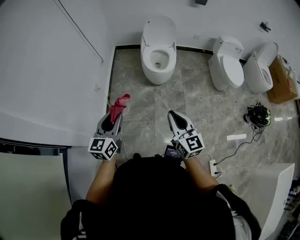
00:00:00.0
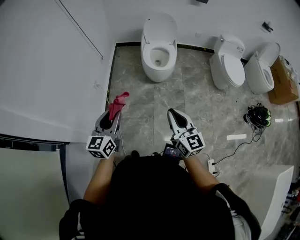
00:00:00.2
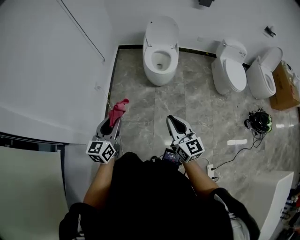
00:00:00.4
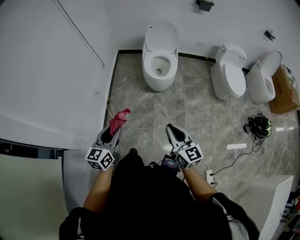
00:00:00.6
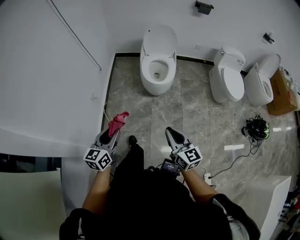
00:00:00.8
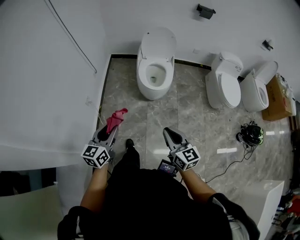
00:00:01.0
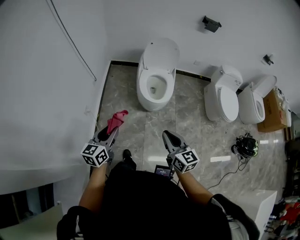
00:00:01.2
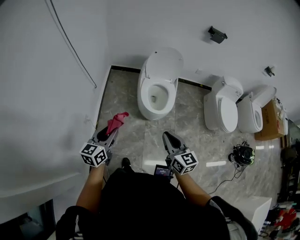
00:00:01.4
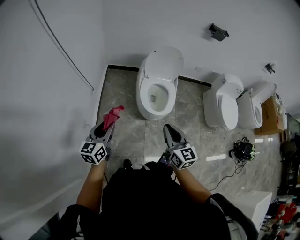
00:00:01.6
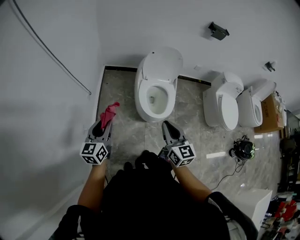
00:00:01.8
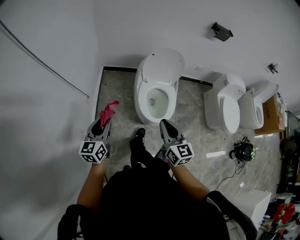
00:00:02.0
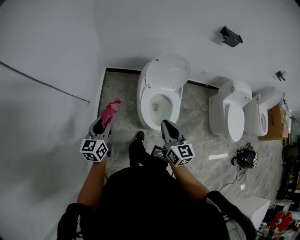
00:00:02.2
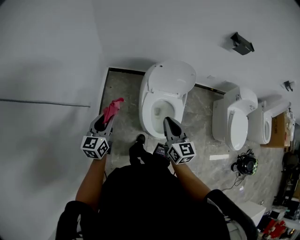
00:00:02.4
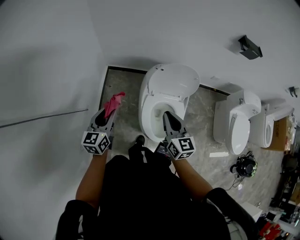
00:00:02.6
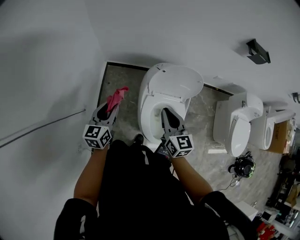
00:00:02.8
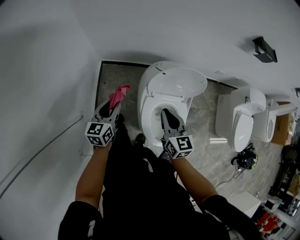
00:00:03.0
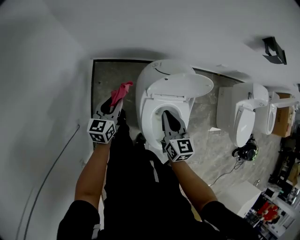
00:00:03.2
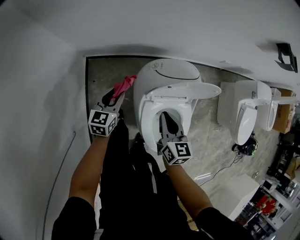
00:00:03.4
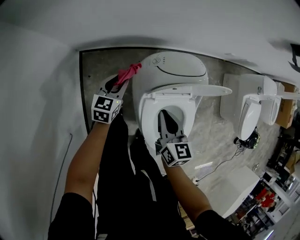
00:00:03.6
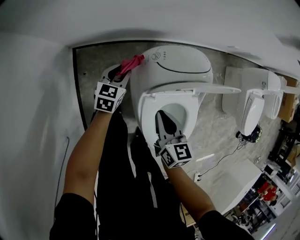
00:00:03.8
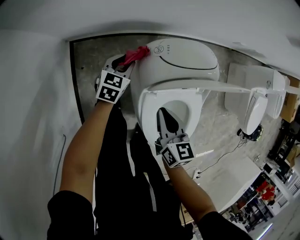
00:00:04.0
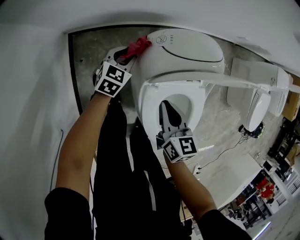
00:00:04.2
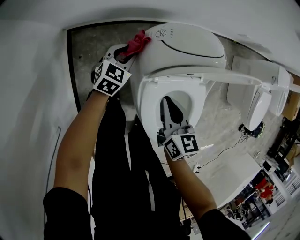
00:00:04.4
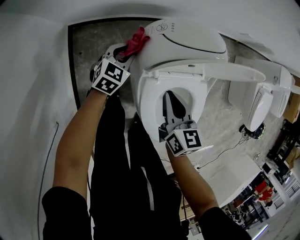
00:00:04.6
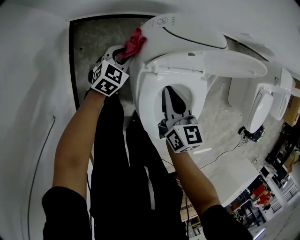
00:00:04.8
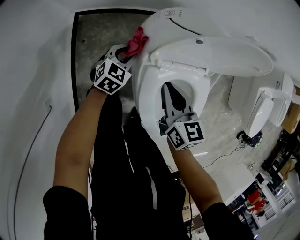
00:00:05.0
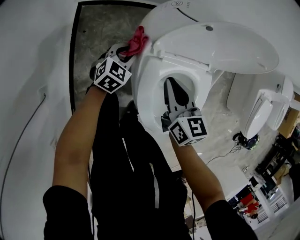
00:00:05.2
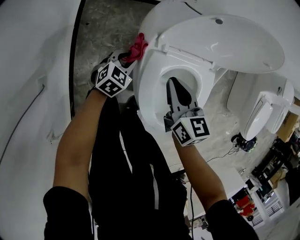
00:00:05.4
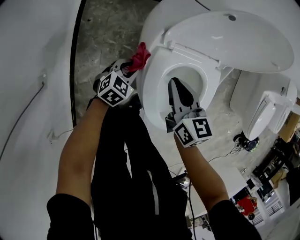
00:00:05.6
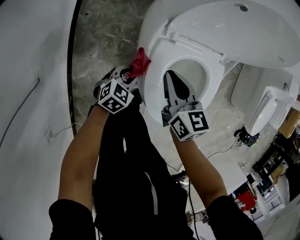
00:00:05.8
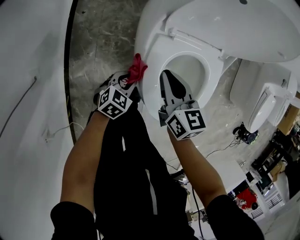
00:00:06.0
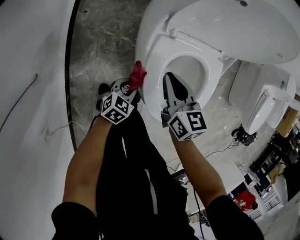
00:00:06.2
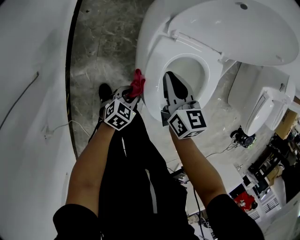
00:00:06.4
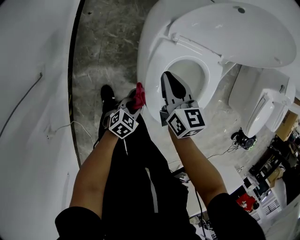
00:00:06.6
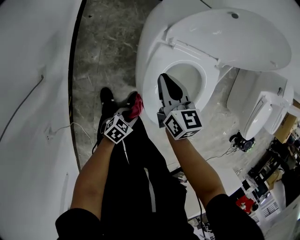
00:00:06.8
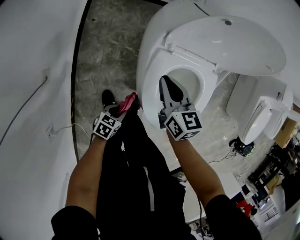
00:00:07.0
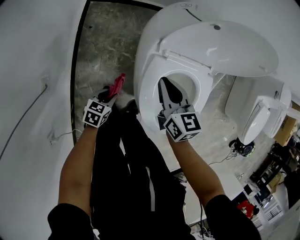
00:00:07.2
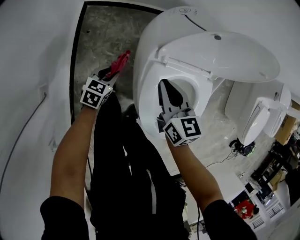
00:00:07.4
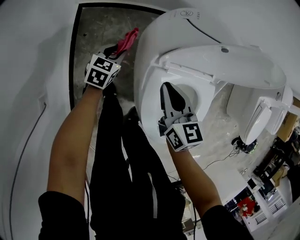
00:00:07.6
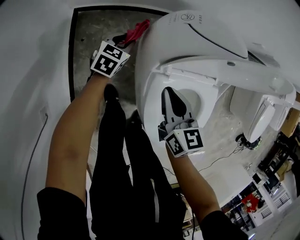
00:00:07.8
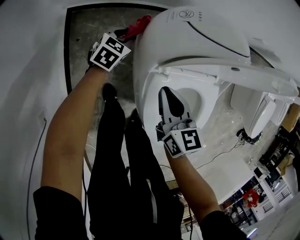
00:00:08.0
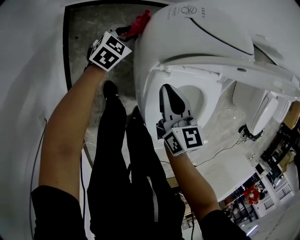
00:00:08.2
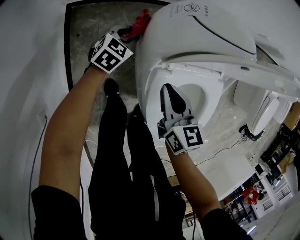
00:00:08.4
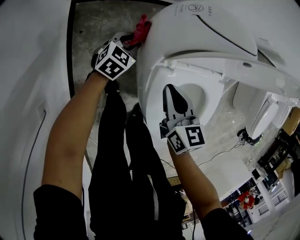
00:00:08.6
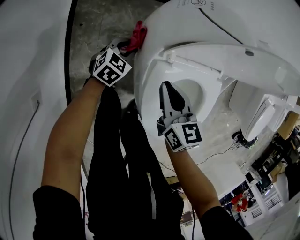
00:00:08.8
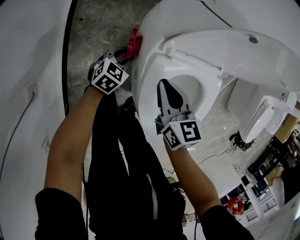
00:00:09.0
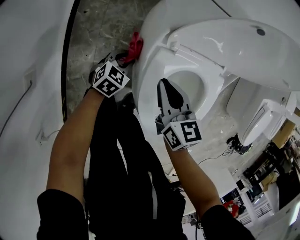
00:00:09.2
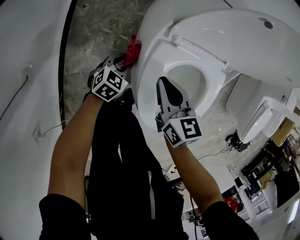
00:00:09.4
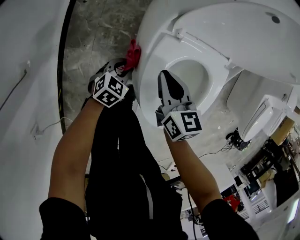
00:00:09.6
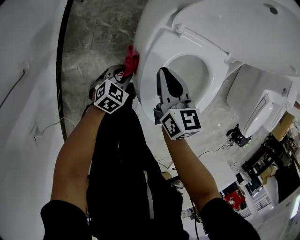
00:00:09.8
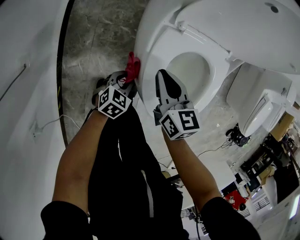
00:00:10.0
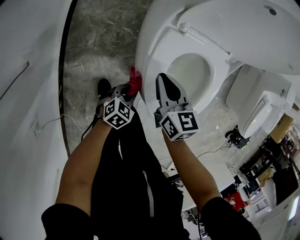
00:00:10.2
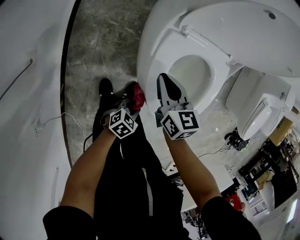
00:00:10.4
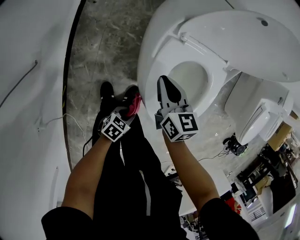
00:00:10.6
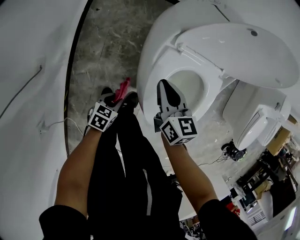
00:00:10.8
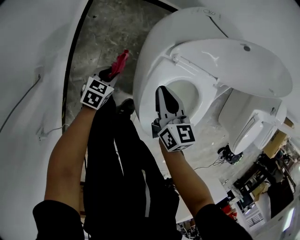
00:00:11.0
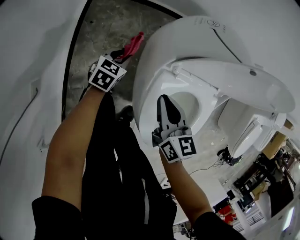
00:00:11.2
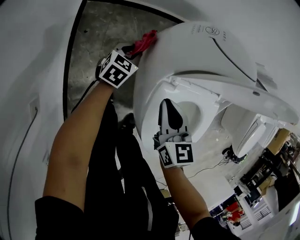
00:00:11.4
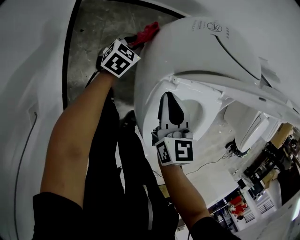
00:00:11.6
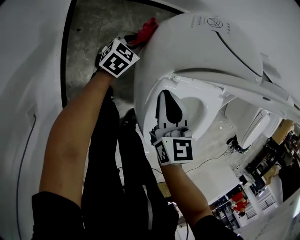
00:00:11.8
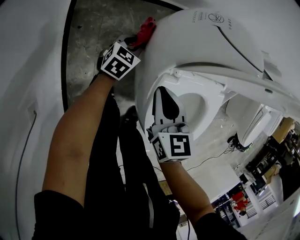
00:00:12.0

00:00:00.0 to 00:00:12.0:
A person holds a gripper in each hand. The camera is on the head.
00:00:00.0 to 00:00:01.6: The grippers both shift forward by about 35 cm.
00:00:01.6 to 00:00:03.0: The pair of grippers is taken forward, approximately 50 cm.
00:00:03.0 to 00:00:04.4: The left gripper travels downward and forward by about 40 cm, and changes its angle by about 40 degrees. Meanwhile the right gripper moves downward, roughly 25 cm, and changes its angle by roughly 30 degrees.
00:00:04.4 to 00:00:06.0: The left gripper moves backward, about 30 cm. Meanwhile the right gripper goes about 15 cm backward and downward.
00:00:06.0 to 00:00:07.6: The left gripper heads forward and to the left, covering about 25 cm. Meanwhile the right gripper travels forward by roughly 10 cm.
00:00:07.6 to 00:00:09.0: The left gripper shifts roughly 10 cm to the right, backward and downward. The right gripper shifts by about 5 cm.
00:00:09.0 to 00:00:10.4: The right gripper moves backward, some 10 cm; the left gripper moves backward and to the right, some 35 cm, and changes its angle by roughly 20 degrees.
00:00:10.4 to 00:00:12.0: The right gripper is displaced forward and to the left by about 15 cm. The left gripper shifts approximately 50 cm forward and to the left, and turns by about 20 degrees.

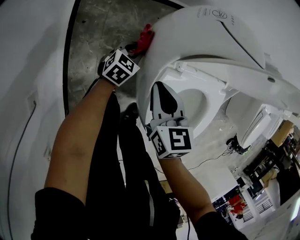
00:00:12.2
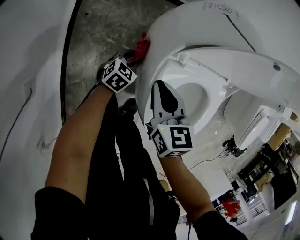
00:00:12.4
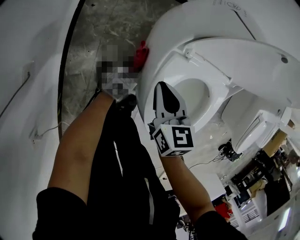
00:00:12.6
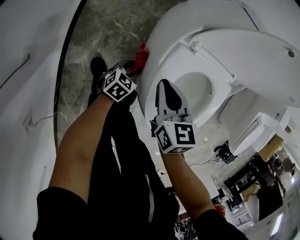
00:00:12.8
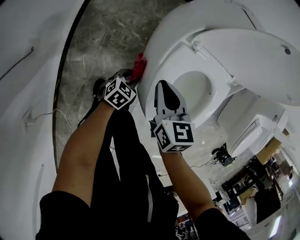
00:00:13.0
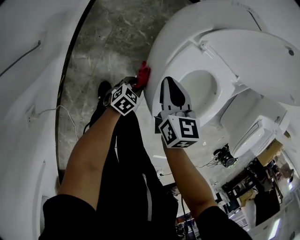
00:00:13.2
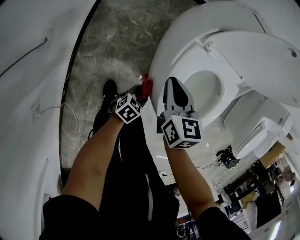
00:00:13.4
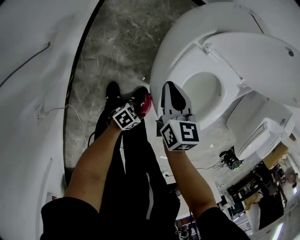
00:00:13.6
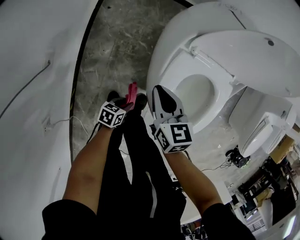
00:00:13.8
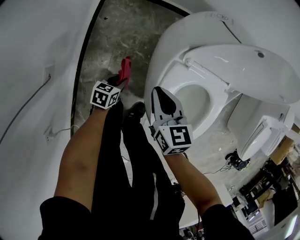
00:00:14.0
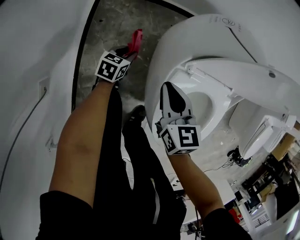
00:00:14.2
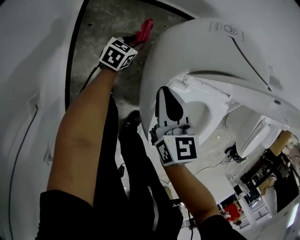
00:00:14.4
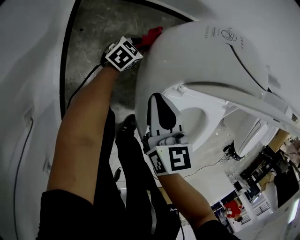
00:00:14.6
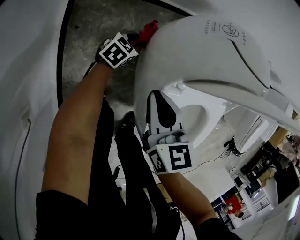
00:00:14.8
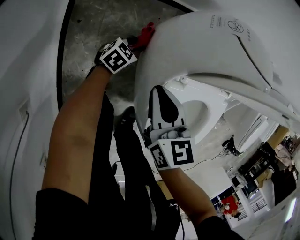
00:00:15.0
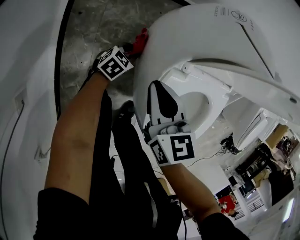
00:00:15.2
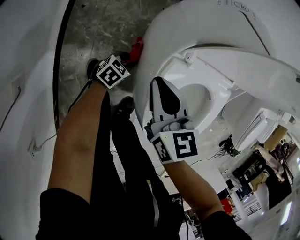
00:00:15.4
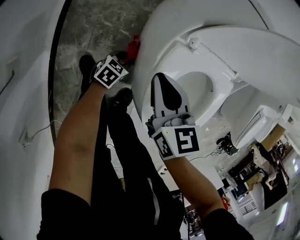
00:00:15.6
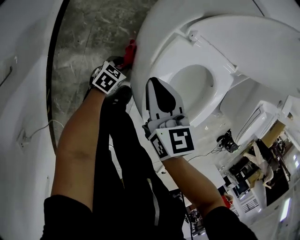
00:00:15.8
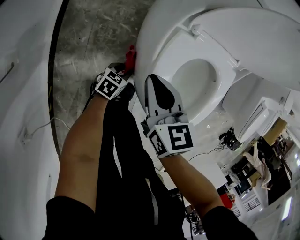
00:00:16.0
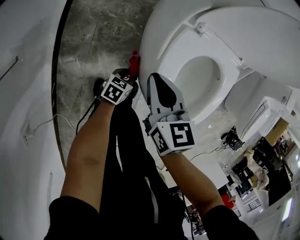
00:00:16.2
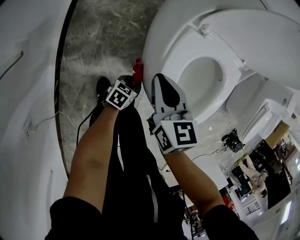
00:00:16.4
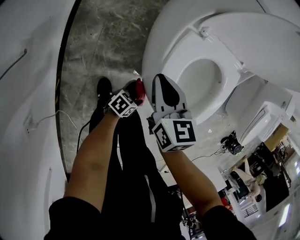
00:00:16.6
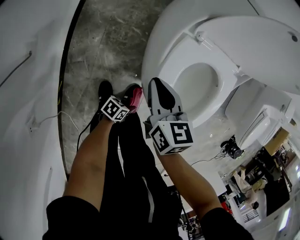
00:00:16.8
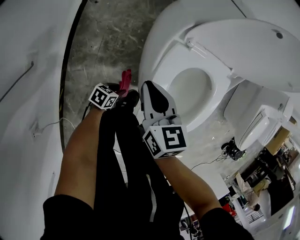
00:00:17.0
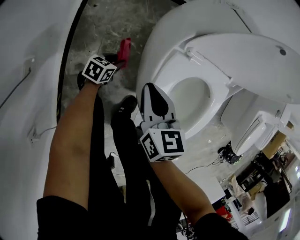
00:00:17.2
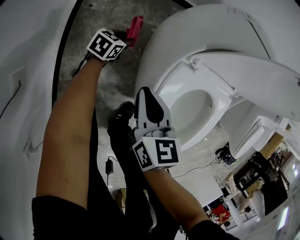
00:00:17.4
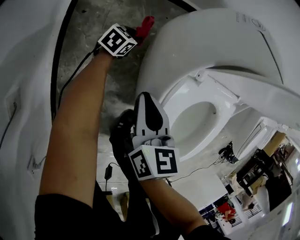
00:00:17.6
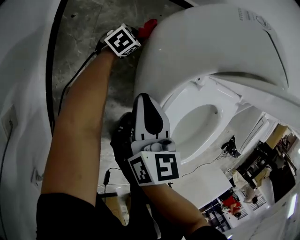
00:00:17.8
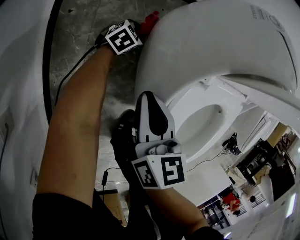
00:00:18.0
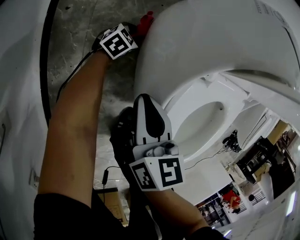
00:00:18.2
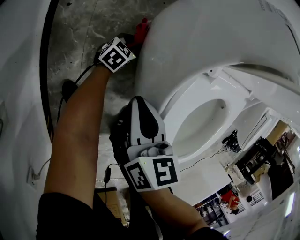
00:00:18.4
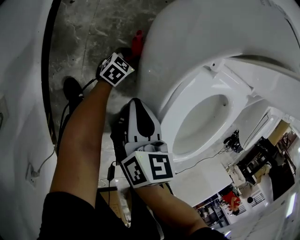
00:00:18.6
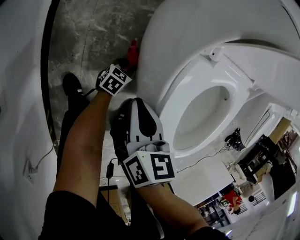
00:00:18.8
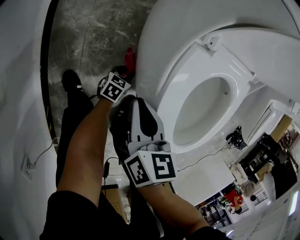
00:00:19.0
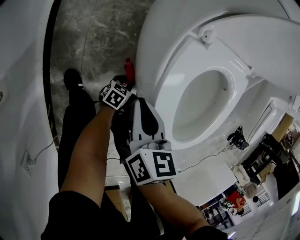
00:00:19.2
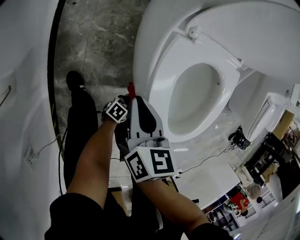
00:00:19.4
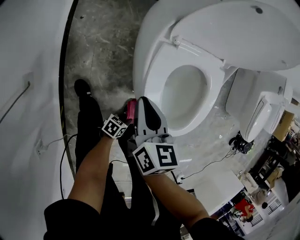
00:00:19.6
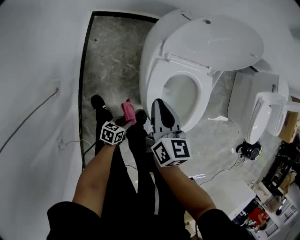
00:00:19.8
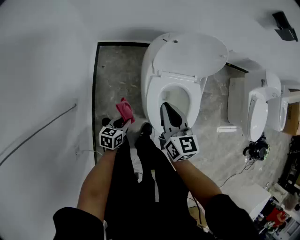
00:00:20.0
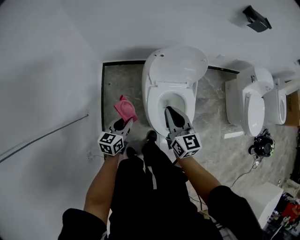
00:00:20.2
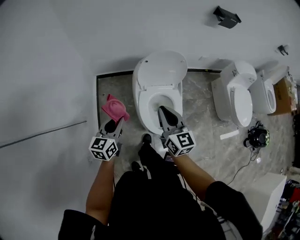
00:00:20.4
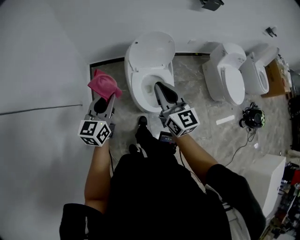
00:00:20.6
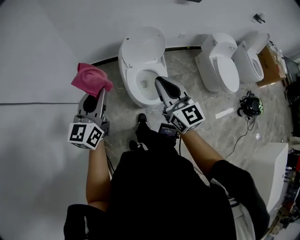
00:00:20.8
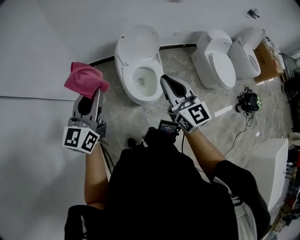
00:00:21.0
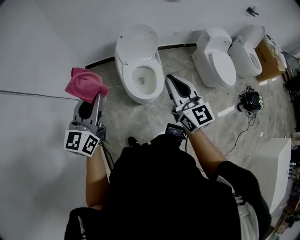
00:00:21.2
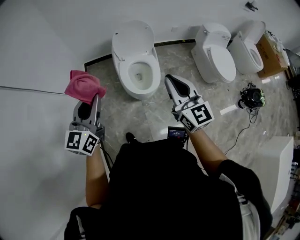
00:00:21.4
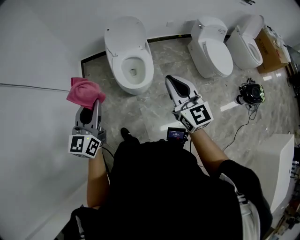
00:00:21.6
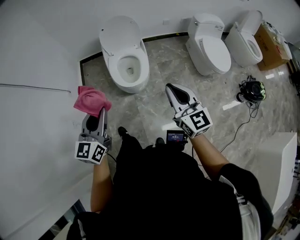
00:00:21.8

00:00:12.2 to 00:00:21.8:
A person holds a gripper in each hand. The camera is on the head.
00:00:12.2 to 00:00:13.8: The right gripper ends up some 10 cm from where it was, while the left gripper moves roughly 35 cm, and rotates around the line of its fingers by roughly 40 degrees, counterclockwise from behind.
00:00:13.8 to 00:00:15.4: The left gripper goes approximately 25 cm forward, and rotates some 40 degrees. Meanwhile the right gripper moves forward, roughly 10 cm.
00:00:15.4 to 00:00:17.0: The right gripper goes about 10 cm backward. The left gripper heads backward, covering approximately 20 cm, and rotates some 30 degrees.
00:00:17.0 to 00:00:18.6: The right gripper travels downward by roughly 10 cm, and turns by some 30 degrees, while the left gripper goes roughly 25 cm forward and downward, and rotates some 30 degrees.
00:00:18.6 to 00:00:20.2: Both grippers travel together upward, roughly 50 cm. The left gripper swivels about 30 degrees, while the right gripper tilts its fingers about 40 degrees upward.
00:00:20.2 to 00:00:21.8: The pair of grippers is taken backward and to the right, approximately 40 cm. The left gripper goes some 30 cm upward, and rotates some 30 degrees, while the right gripper goes some 20 cm upward.

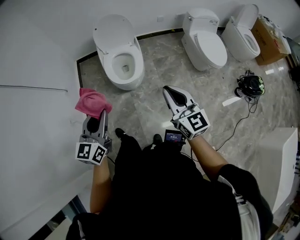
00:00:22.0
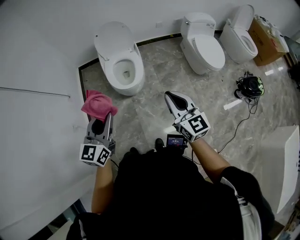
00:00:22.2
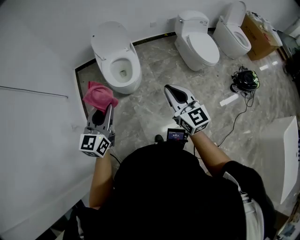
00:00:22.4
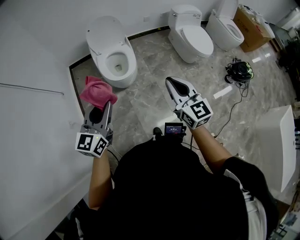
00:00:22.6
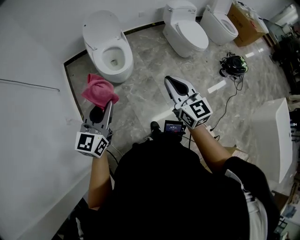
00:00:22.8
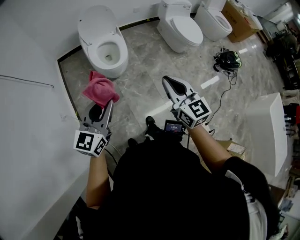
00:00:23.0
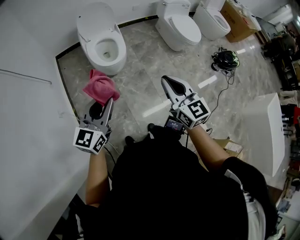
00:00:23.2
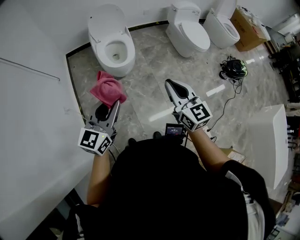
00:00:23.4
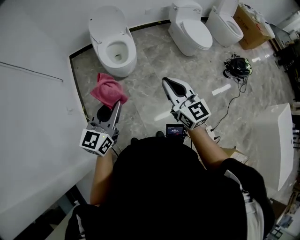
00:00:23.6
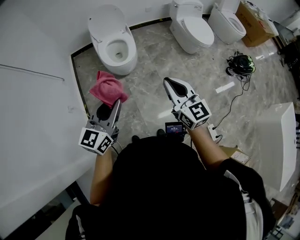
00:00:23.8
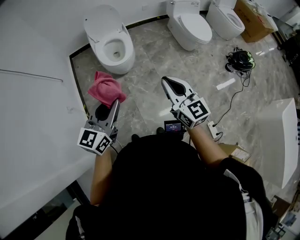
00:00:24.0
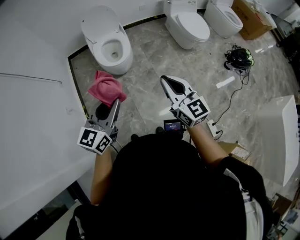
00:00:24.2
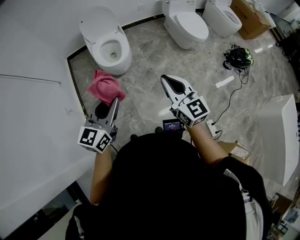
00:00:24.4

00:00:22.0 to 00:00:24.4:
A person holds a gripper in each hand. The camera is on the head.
00:00:22.0 to 00:00:23.2: The grippers both shift backward by roughly 15 cm. The left gripper changes its angle by approximately 20 degrees.
00:00:23.2 to 00:00:24.4: Both grippers move to the right, some 10 cm.
